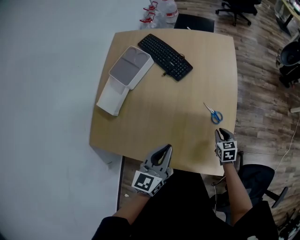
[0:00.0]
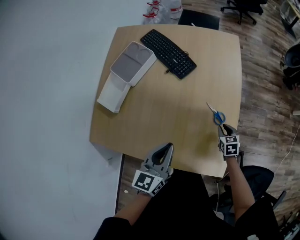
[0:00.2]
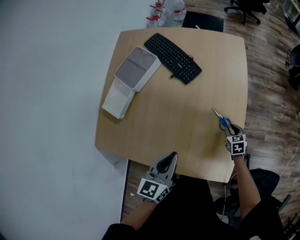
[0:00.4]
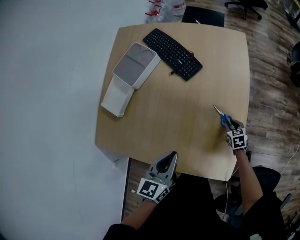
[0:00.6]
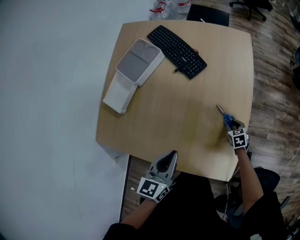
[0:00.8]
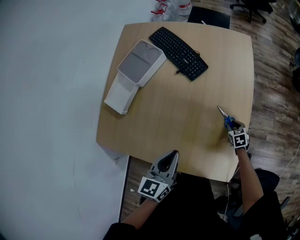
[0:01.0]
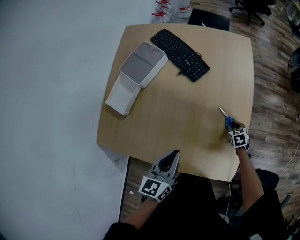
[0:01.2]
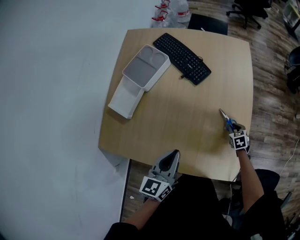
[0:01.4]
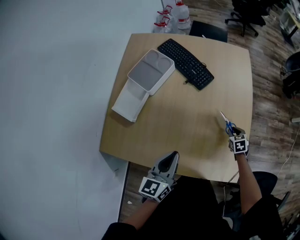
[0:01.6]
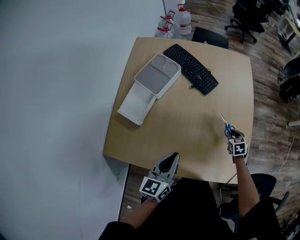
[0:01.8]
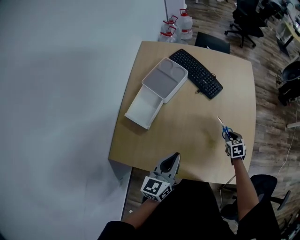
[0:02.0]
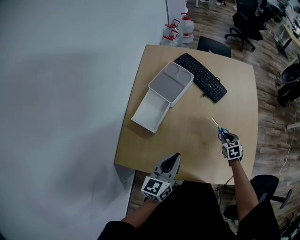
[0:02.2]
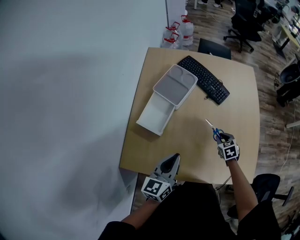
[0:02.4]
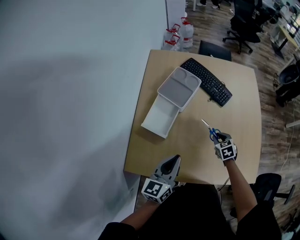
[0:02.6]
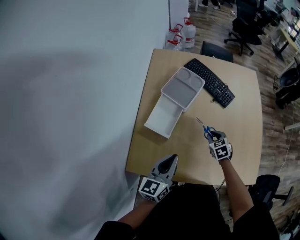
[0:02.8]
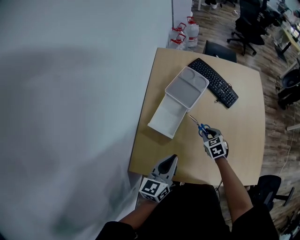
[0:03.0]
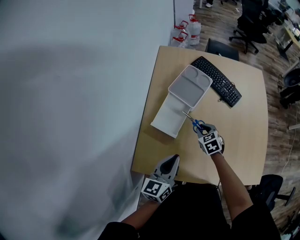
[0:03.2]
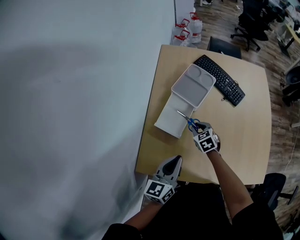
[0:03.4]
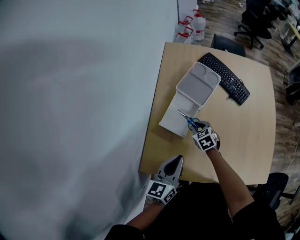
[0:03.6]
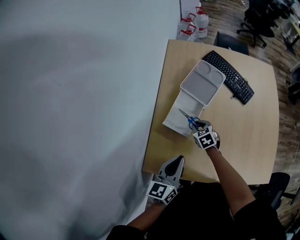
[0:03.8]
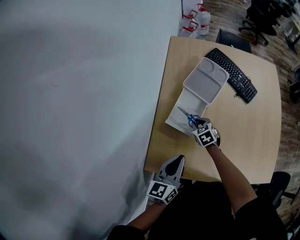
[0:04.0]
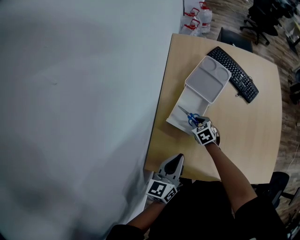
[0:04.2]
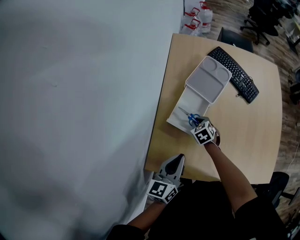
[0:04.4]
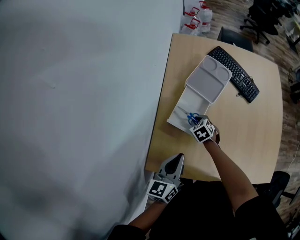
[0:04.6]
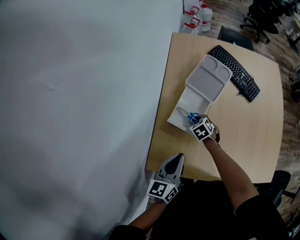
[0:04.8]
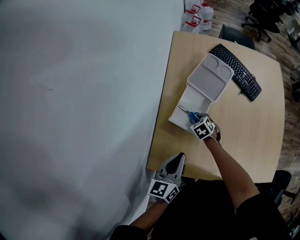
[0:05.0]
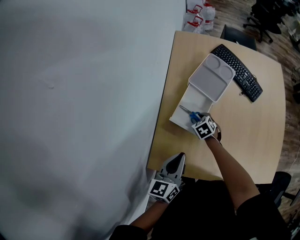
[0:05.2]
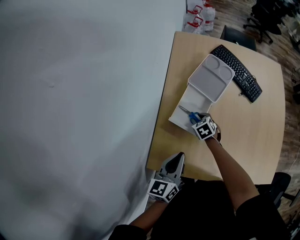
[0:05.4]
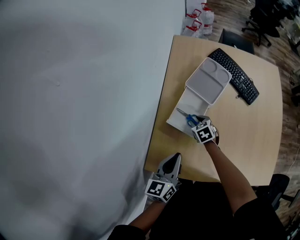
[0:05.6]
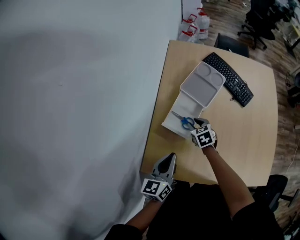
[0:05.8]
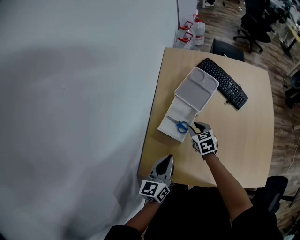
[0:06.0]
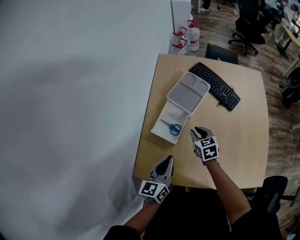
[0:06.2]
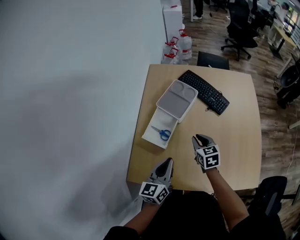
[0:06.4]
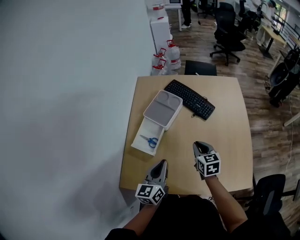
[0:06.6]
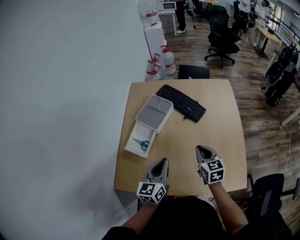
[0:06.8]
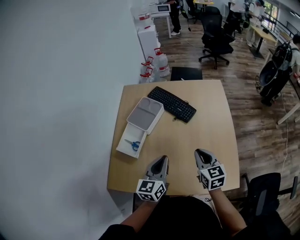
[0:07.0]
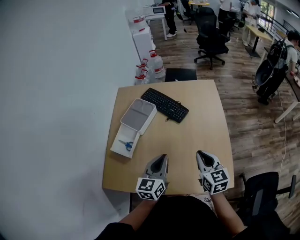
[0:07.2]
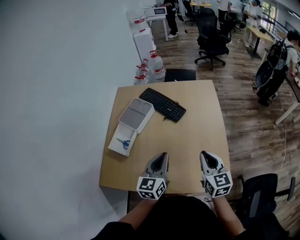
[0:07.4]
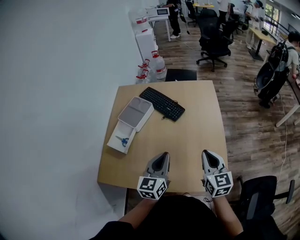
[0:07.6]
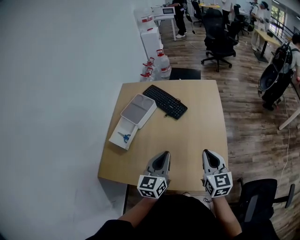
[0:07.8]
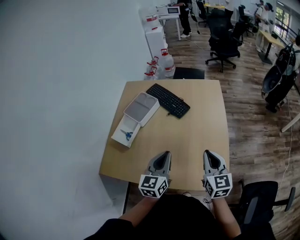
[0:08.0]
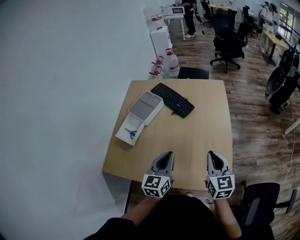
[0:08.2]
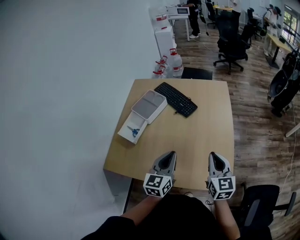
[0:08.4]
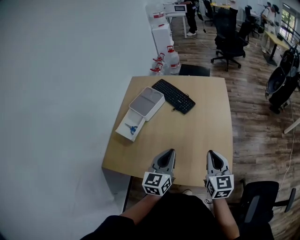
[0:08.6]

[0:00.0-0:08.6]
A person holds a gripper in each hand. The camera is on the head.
0:00.0 to 0:01.4: The right gripper heads downward and forward, covering roughly 10 cm, while the left gripper moves to the left, about 5 cm.
0:01.4 to 0:02.8: The two grippers go roughly 35 cm to the left.
0:02.8 to 0:04.4: The left gripper is displaced to the left by roughly 10 cm. The right gripper is displaced to the left by approximately 25 cm.
0:04.4 to 0:05.8: The right gripper is displaced upward by approximately 5 cm.
0:05.8 to 0:07.2: The left gripper heads to the right, covering about 35 cm; the right gripper heads to the right, upward and backward, covering approximately 50 cm, tilts its fingers approximately 30 degrees upward, and closes.
0:07.2 to 0:08.6: The left gripper shifts approximately 10 cm backward and to the right; the right gripper heads to the right and backward, covering approximately 10 cm.

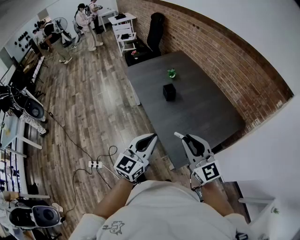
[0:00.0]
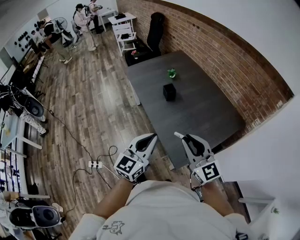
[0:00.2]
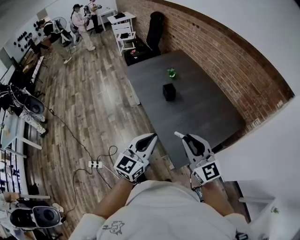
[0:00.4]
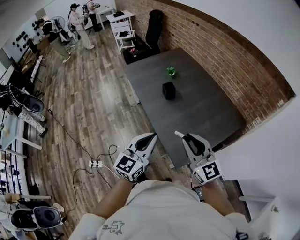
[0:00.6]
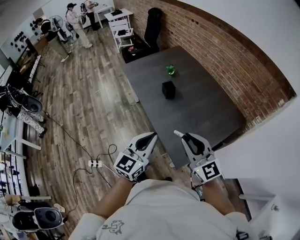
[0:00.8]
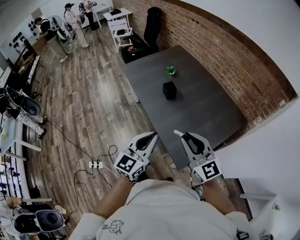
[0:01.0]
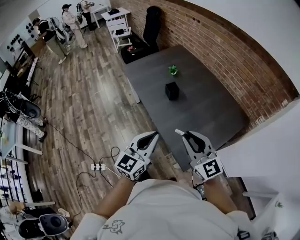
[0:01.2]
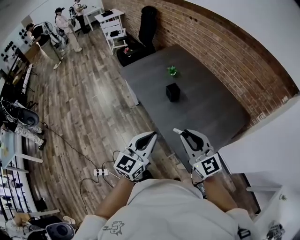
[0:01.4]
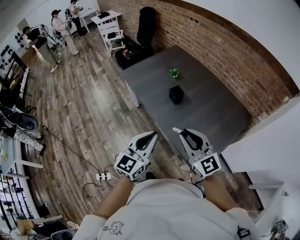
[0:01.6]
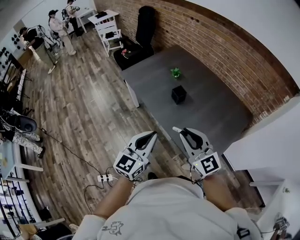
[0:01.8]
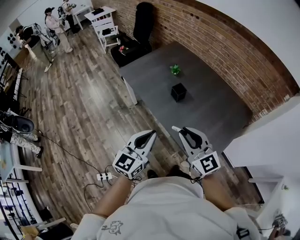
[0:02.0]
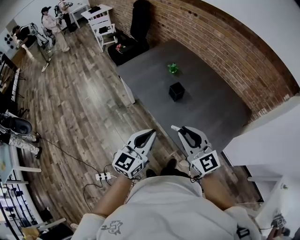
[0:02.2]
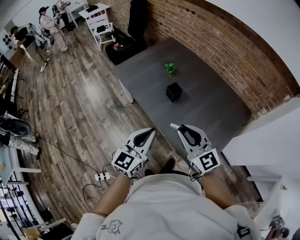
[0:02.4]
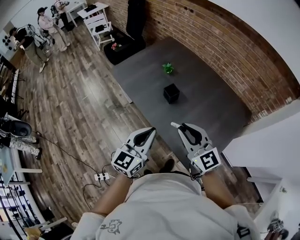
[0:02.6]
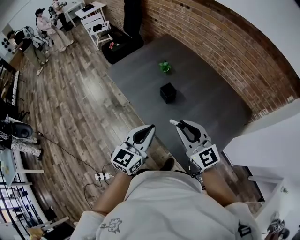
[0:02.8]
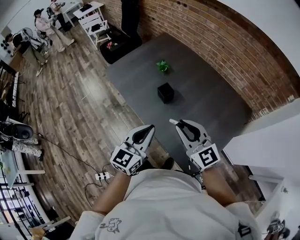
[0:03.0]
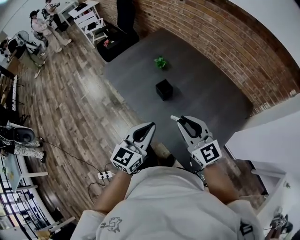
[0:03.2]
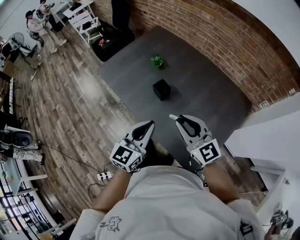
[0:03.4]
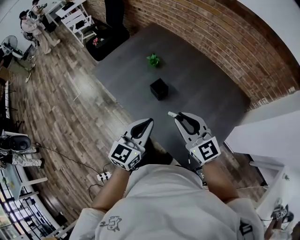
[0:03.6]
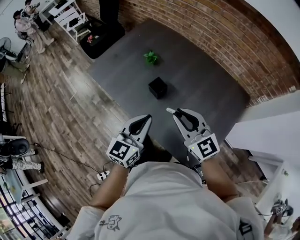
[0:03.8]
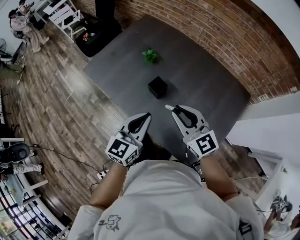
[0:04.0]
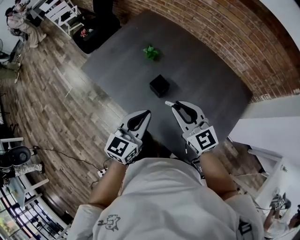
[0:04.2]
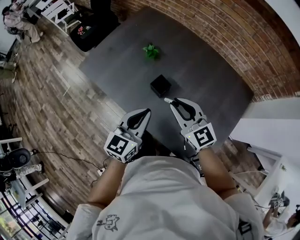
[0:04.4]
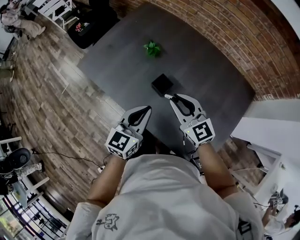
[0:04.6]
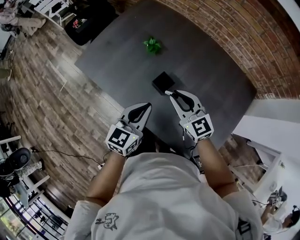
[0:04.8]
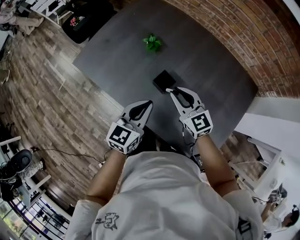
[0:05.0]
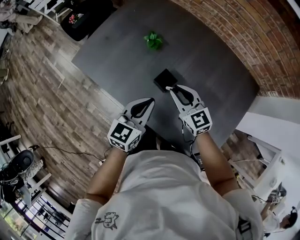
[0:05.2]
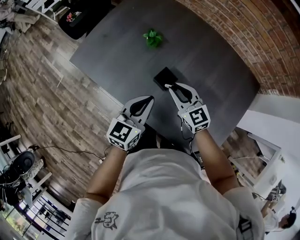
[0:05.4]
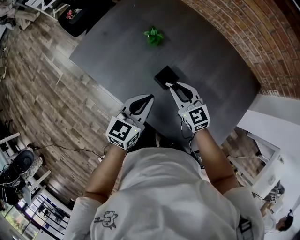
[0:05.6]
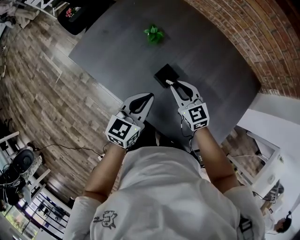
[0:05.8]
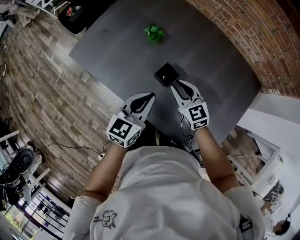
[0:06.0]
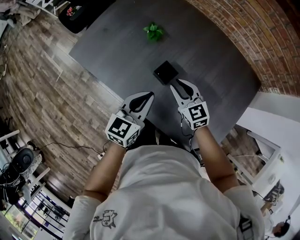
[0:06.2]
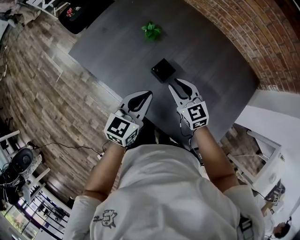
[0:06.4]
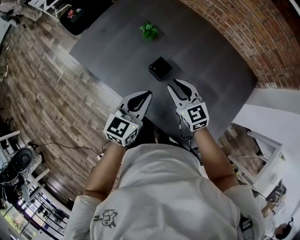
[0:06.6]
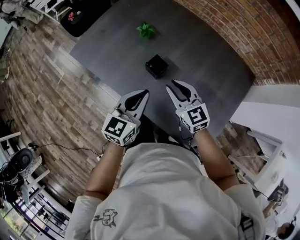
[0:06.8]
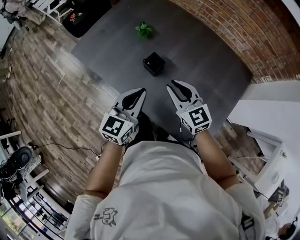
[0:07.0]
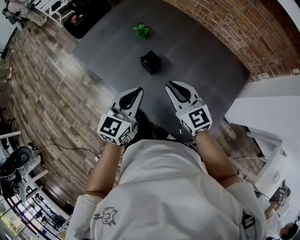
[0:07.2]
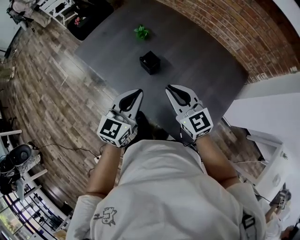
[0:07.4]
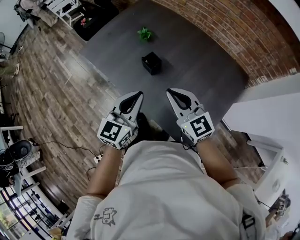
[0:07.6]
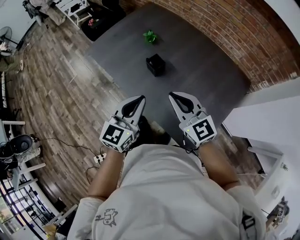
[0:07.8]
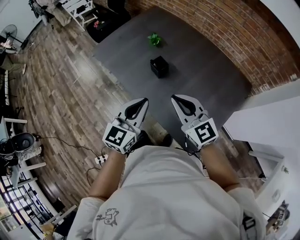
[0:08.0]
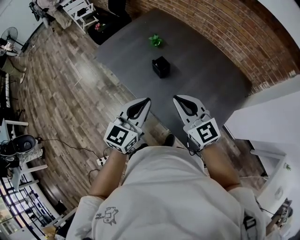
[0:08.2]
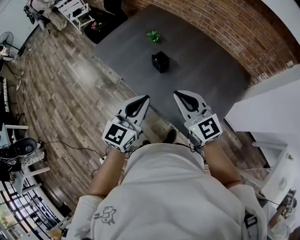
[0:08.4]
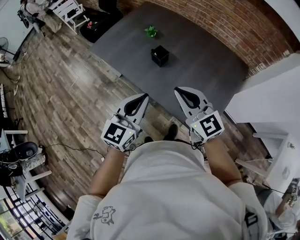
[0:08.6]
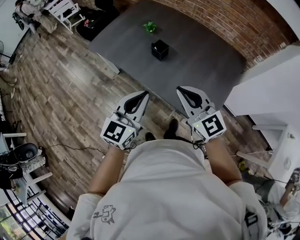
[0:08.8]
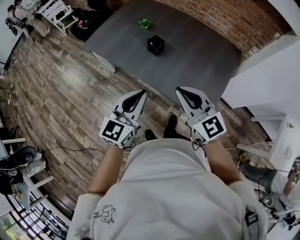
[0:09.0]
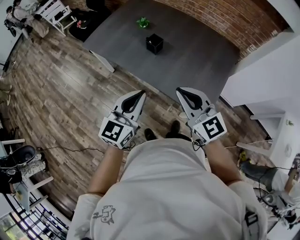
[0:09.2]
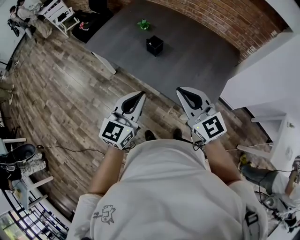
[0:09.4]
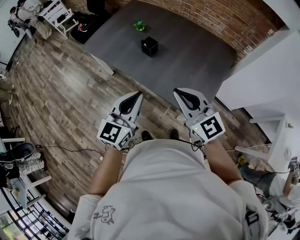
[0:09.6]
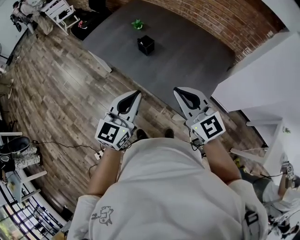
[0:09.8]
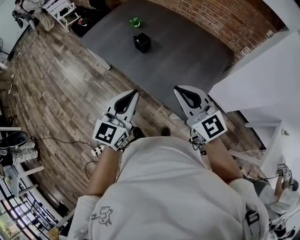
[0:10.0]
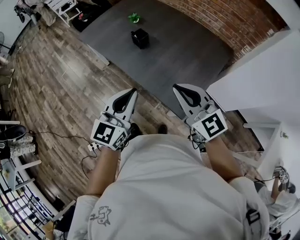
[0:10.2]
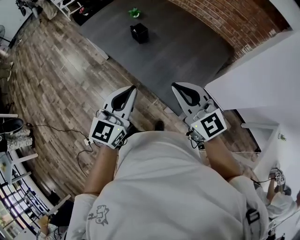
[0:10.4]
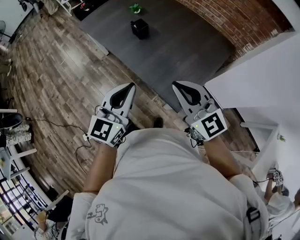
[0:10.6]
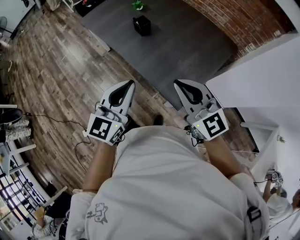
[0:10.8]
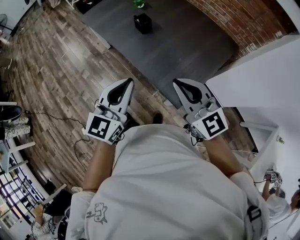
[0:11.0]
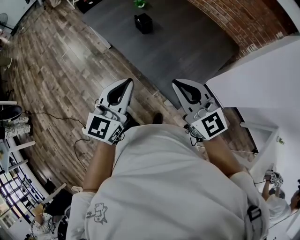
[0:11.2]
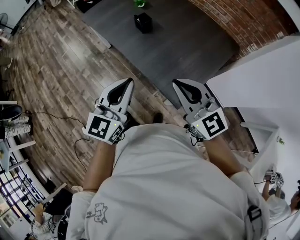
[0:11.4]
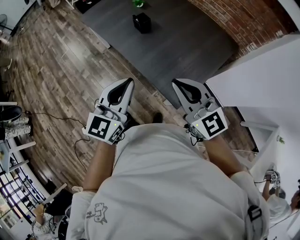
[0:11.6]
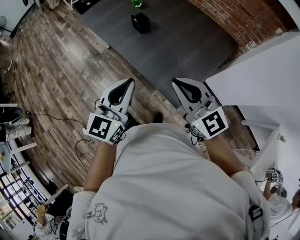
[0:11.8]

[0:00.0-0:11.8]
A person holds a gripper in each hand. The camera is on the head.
0:00.0 to 0:01.4: The two grippers go approximately 10 cm to the left and forward.
0:01.4 to 0:03.0: The grippers both shift forward by roughly 15 cm.
0:03.0 to 0:04.4: The grippers both shift forward and downward by some 20 cm.
0:04.4 to 0:06.0: The right gripper moves downward and forward, some 20 cm, while the left gripper travels downward and forward by some 10 cm.
0:06.0 to 0:07.4: The right gripper heads upward and backward, covering approximately 25 cm. Meanwhile the left gripper travels backward and upward by about 15 cm.
0:07.4 to 0:08.8: The left gripper heads backward and to the left, covering roughly 20 cm. Meanwhile the right gripper goes roughly 20 cm backward and upward.
0:08.8 to 0:10.4: Both grippers travel together to the right and backward, about 15 cm.
0:10.4 to 0:11.8: The grippers make only small movements.

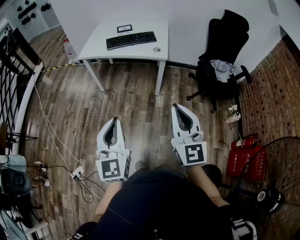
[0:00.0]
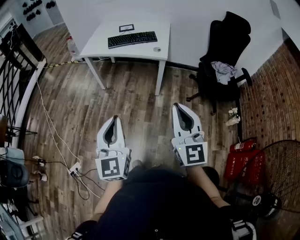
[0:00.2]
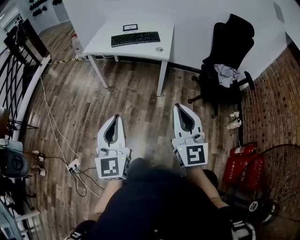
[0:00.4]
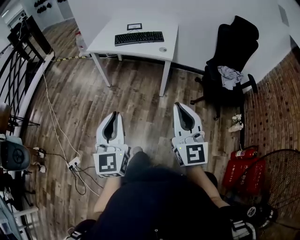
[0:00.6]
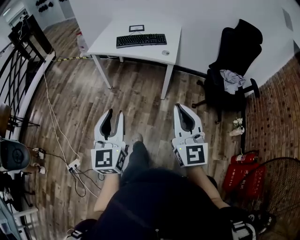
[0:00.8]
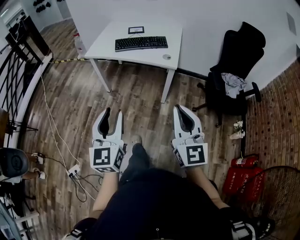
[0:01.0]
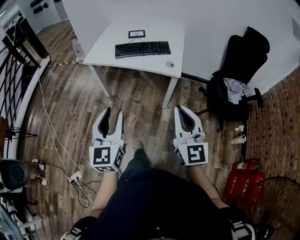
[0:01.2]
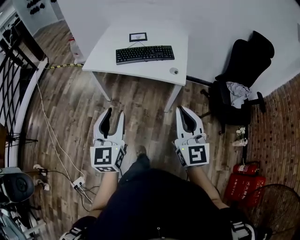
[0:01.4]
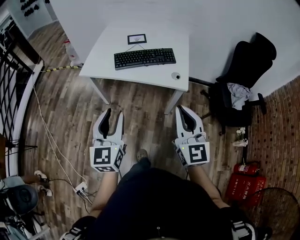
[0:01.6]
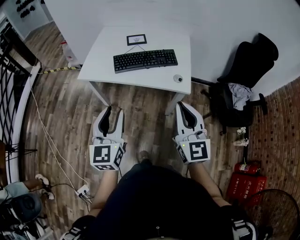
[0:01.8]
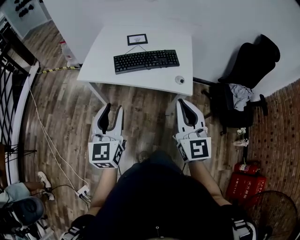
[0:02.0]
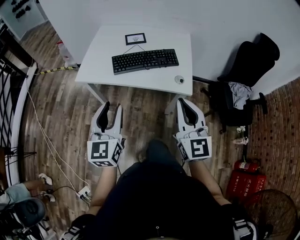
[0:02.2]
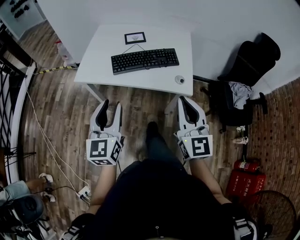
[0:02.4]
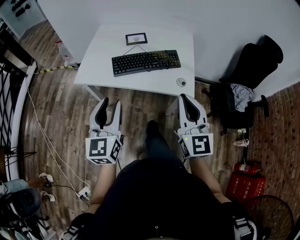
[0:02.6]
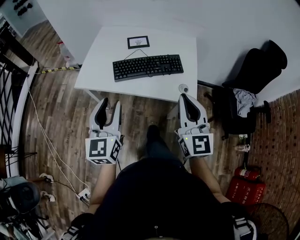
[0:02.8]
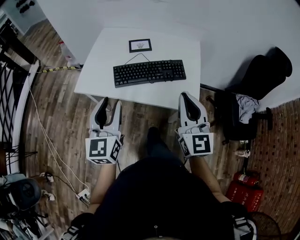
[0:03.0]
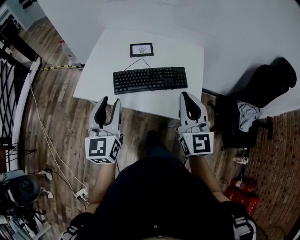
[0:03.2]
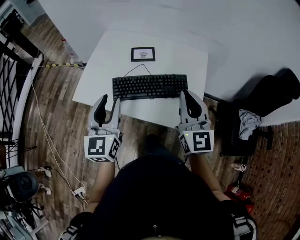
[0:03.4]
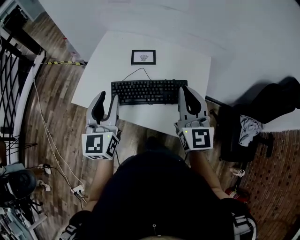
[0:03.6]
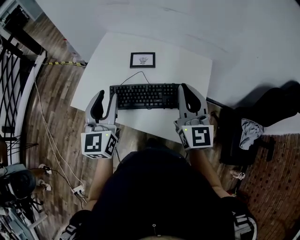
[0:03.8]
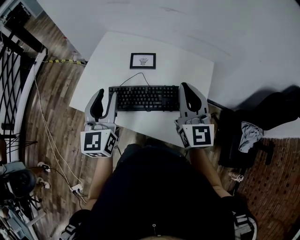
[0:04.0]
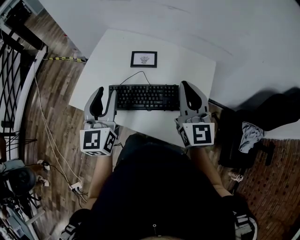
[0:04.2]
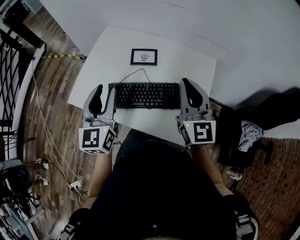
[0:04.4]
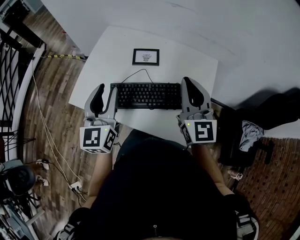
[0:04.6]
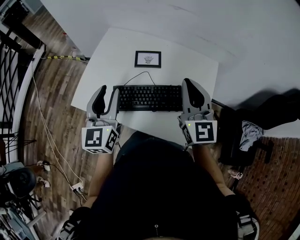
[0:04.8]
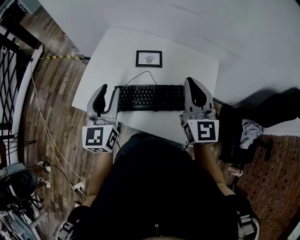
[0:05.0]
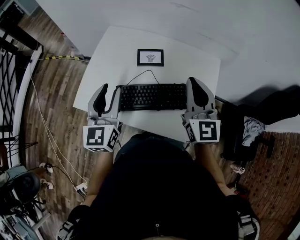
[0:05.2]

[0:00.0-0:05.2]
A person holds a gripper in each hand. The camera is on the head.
0:00.0 to 0:01.8: Both grippers travel together forward, approximately 40 cm. The left gripper opens.
0:01.8 to 0:03.4: The grippers both shift forward by about 30 cm.
0:03.4 to 0:05.2: Both grippers move forward, some 15 cm.
